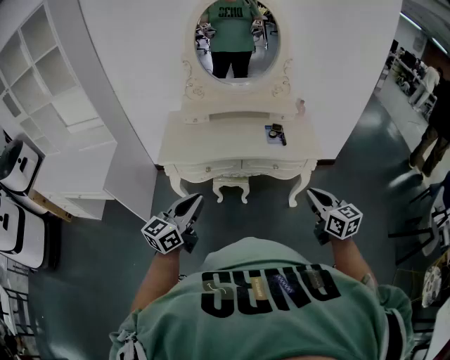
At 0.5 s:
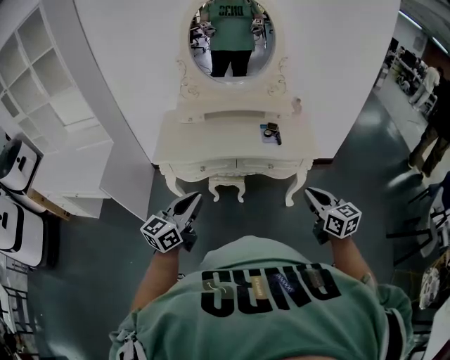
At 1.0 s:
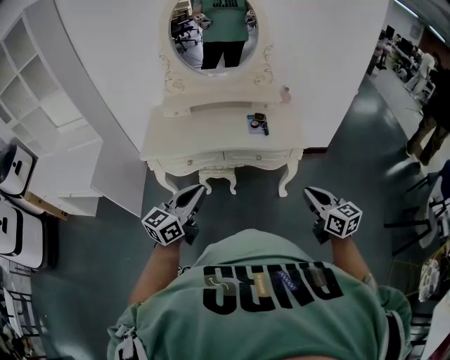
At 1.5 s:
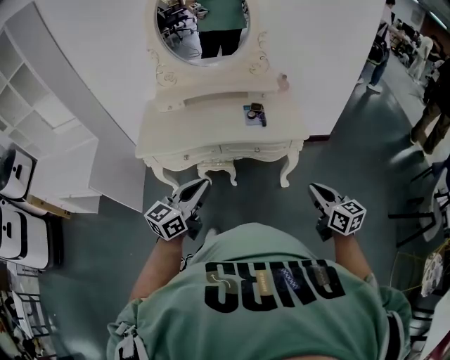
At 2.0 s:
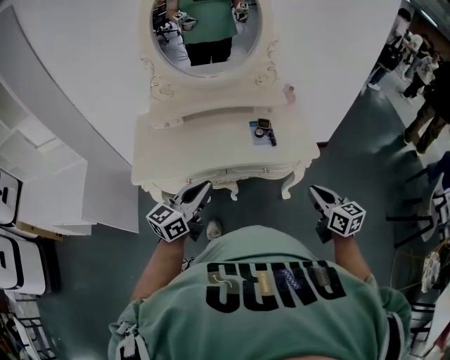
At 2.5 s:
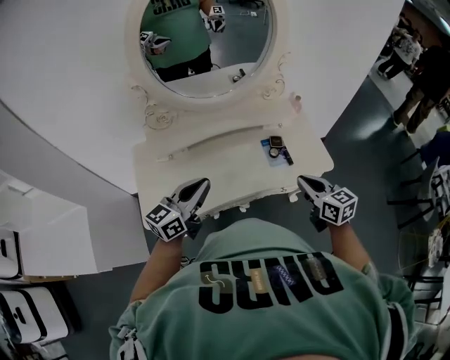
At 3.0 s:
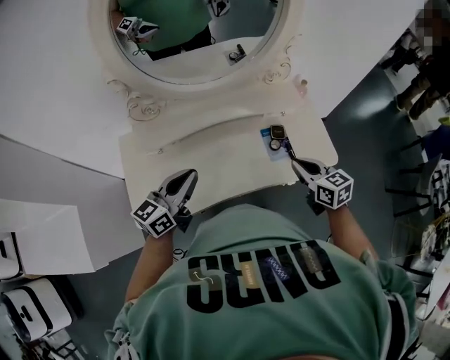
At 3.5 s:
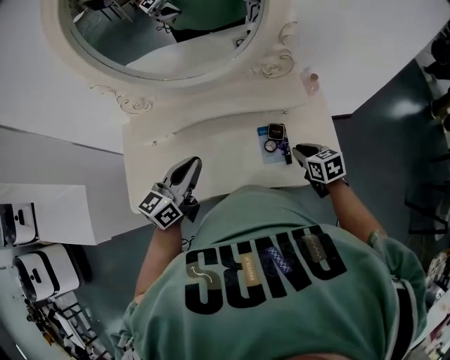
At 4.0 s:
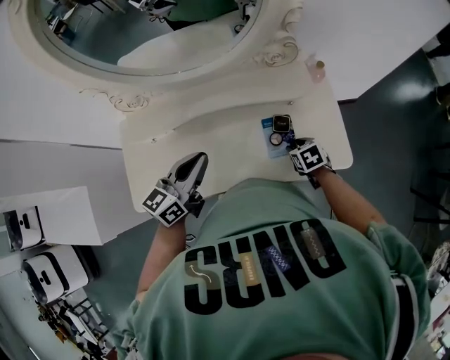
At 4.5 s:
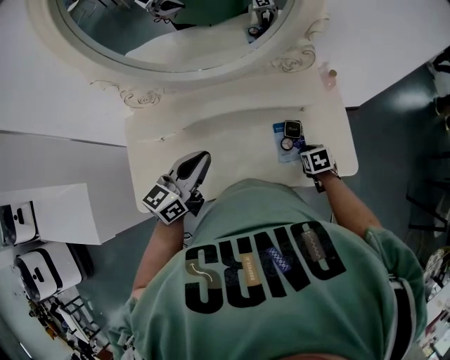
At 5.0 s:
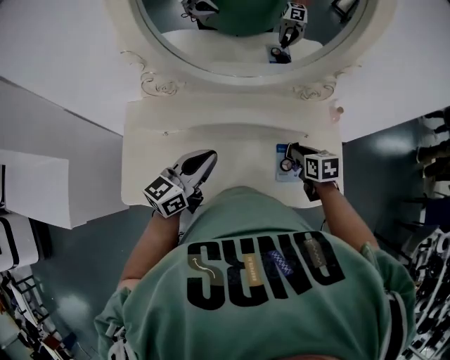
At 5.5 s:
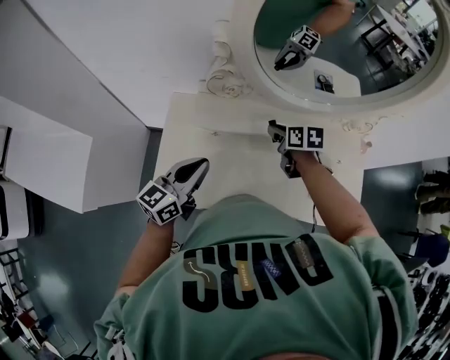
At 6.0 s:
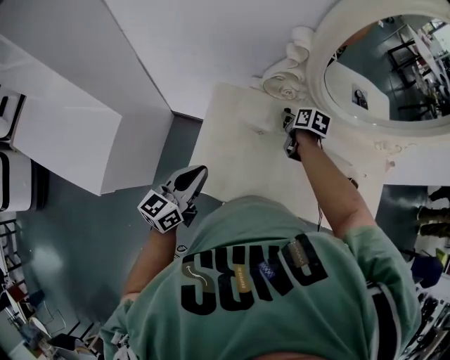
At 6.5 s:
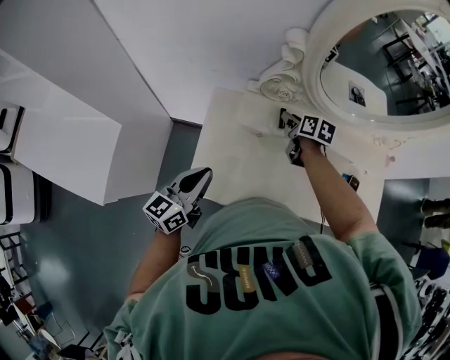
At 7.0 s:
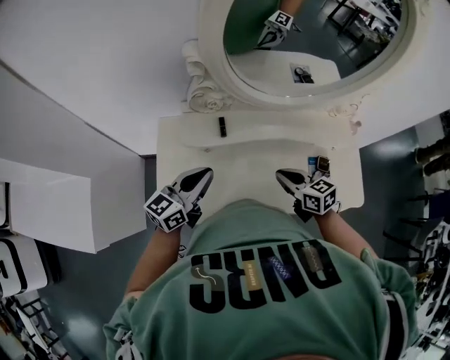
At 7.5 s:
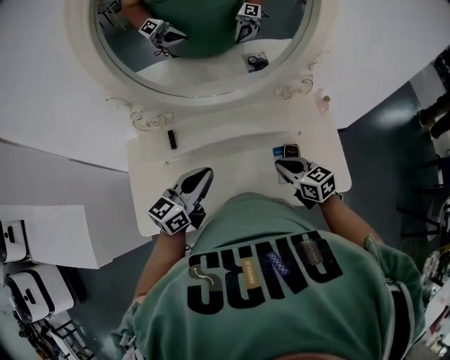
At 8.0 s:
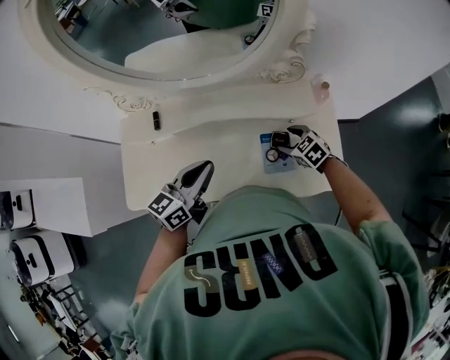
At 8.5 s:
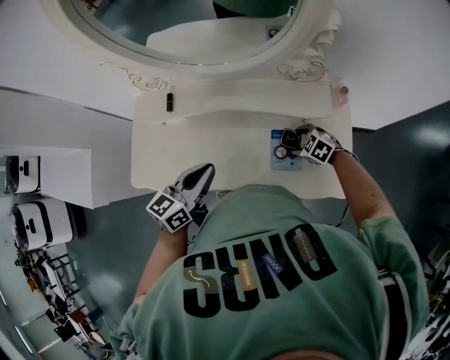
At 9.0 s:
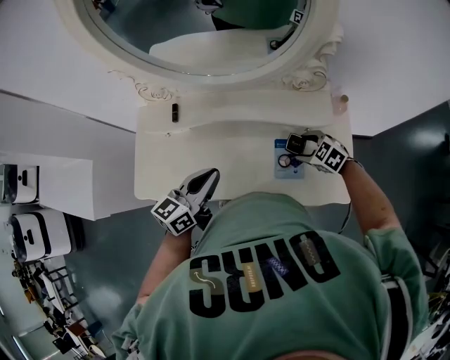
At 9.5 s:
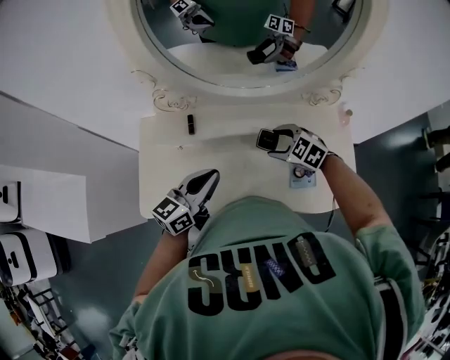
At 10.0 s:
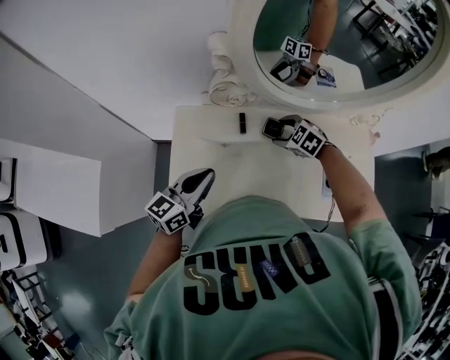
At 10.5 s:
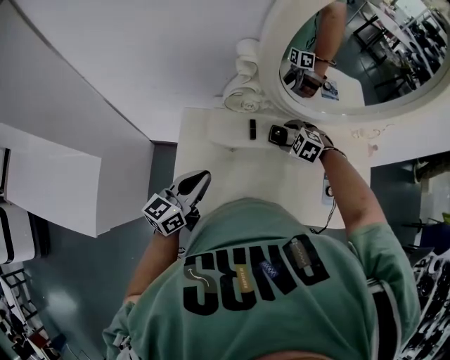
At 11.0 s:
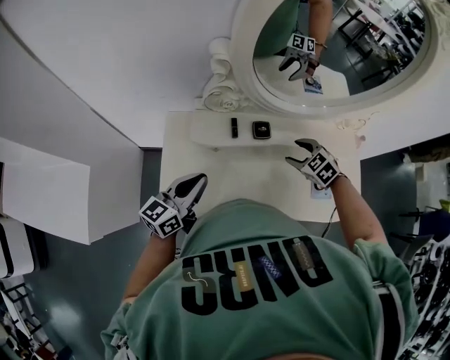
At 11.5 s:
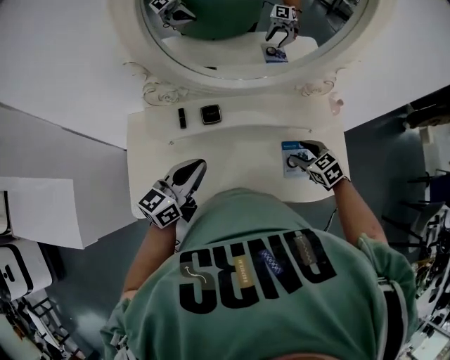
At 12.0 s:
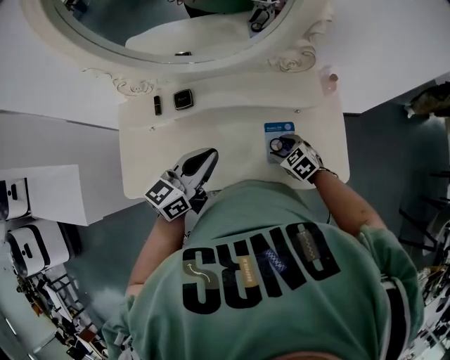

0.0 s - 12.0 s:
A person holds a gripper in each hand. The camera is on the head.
0.0 s - 2.0 s: The right gripper moves forward and downward, some 15 cm. The left gripper heads forward, covering roughly 20 cm.
2.0 s - 4.0 s: The left gripper shifts approximately 35 cm forward. The right gripper travels forward and downward by some 40 cm, angles its fingers downward, by some 40 degrees, and opens up.
4.0 s - 6.0 s: Both grippers are carried to the left, about 40 cm. The left gripper turns by approximately 20 degrees, while the right gripper turns by some 20 degrees.
6.0 s - 8.0 s: Both grippers are carried to the right, approximately 40 cm. The left gripper changes its angle by about 20 degrees, while the right gripper twists roughly 50 degrees counterclockwise, seen from behind, and opens its fingers.
8.0 s - 10.0 s: The right gripper is displaced to the left and forward by approximately 35 cm, and rotates about 20 degrees. Meanwhile the left gripper travels to the left by about 30 cm.
10.0 s - 12.0 s: The right gripper moves to the right and backward, some 35 cm, and turns by approximately 20 degrees, while the left gripper heads to the right, covering roughly 30 cm.

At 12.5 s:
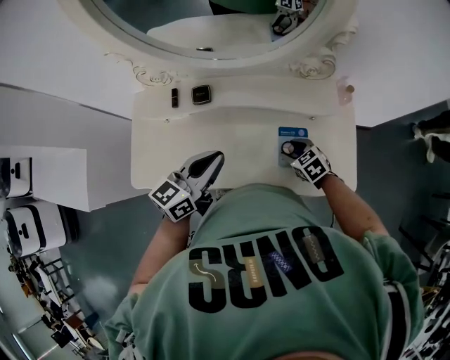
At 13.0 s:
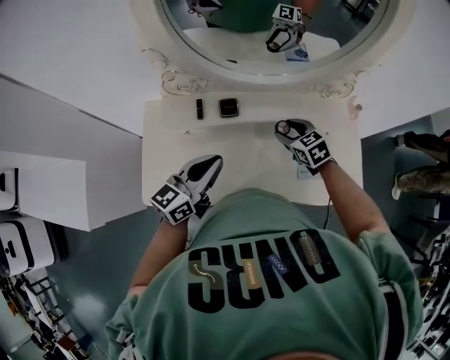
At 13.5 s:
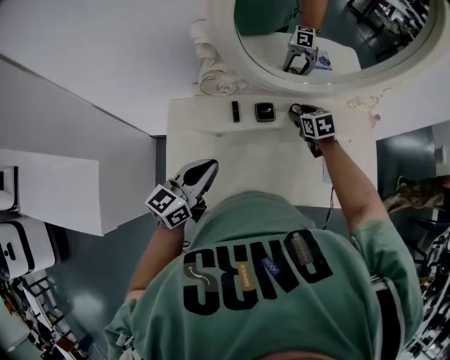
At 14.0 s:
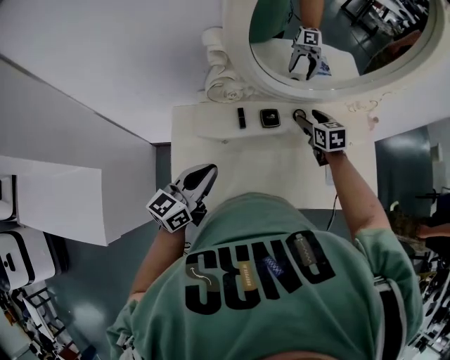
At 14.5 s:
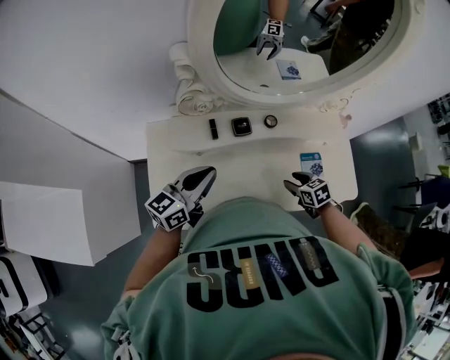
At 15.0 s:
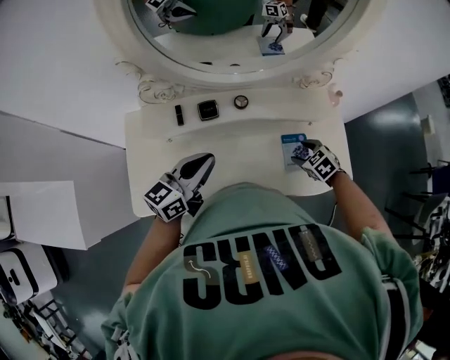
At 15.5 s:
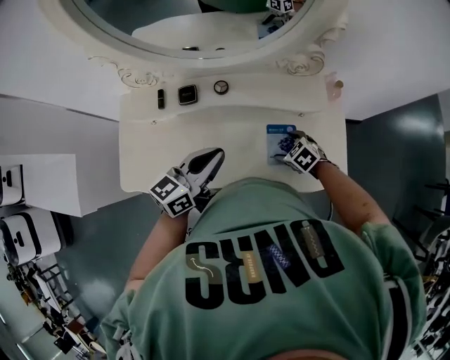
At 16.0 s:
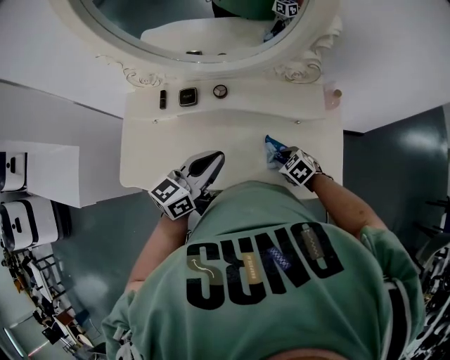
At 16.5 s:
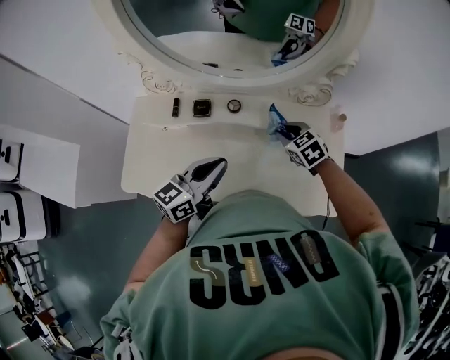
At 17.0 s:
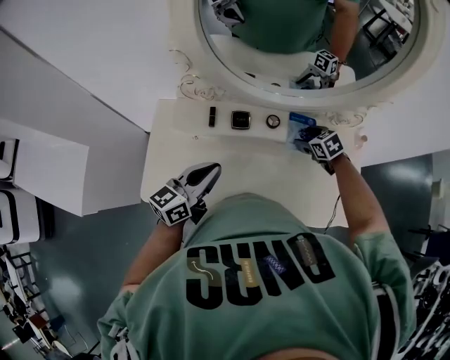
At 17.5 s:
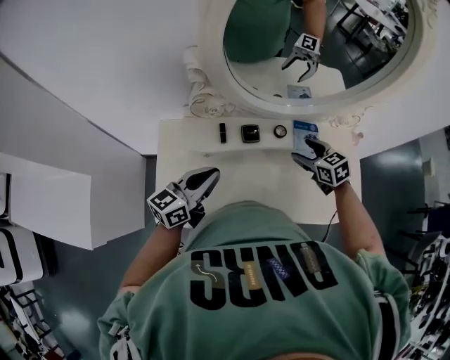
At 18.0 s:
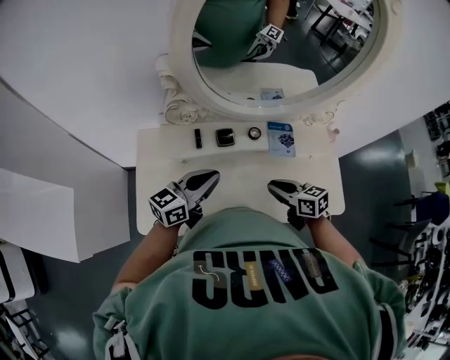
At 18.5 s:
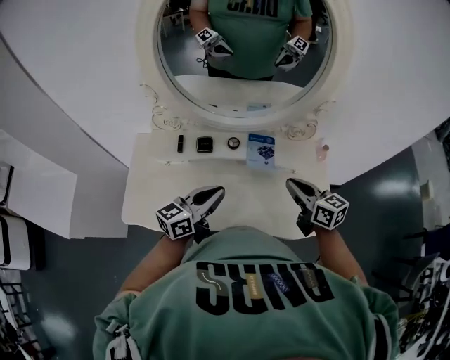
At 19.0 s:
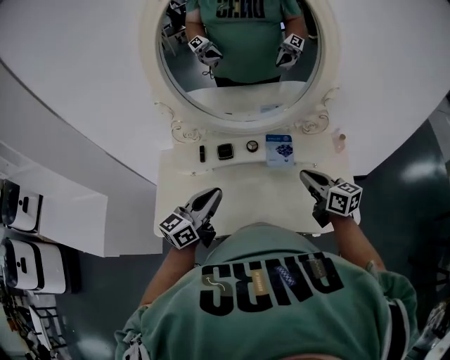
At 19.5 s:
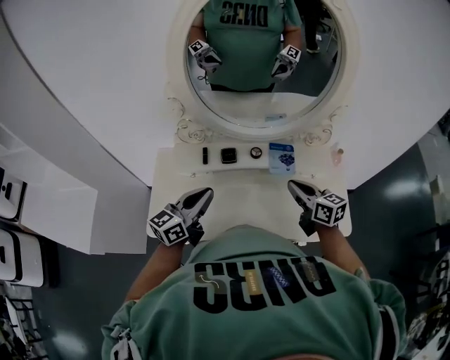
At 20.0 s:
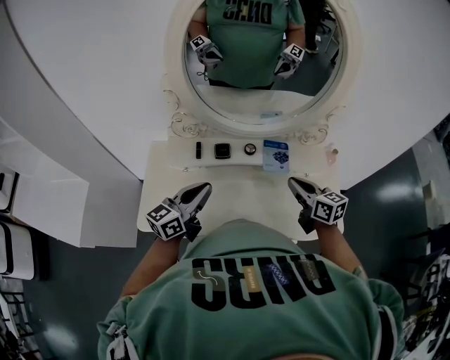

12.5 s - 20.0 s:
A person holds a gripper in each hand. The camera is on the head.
12.5 s - 14.5 s: The left gripper heads to the left, covering about 25 cm. The right gripper is displaced to the left by approximately 15 cm, and changes its angle by roughly 20 degrees.
14.5 s - 16.5 s: The right gripper heads forward, to the right and upward, covering approximately 20 cm, changes its angle by approximately 30 degrees, and opens and closes again; the left gripper shifts approximately 25 cm to the right.
16.5 s - 18.0 s: The left gripper heads to the left, covering about 20 cm. The right gripper is displaced to the left and backward by approximately 20 cm, changes its angle by some 40 degrees, and opens, then closes again.
18.0 s - 20.0 s: The right gripper travels to the right and upward by roughly 15 cm. Meanwhile the left gripper goes approximately 5 cm backward, and reaches about 15 cm to the right, then returns.

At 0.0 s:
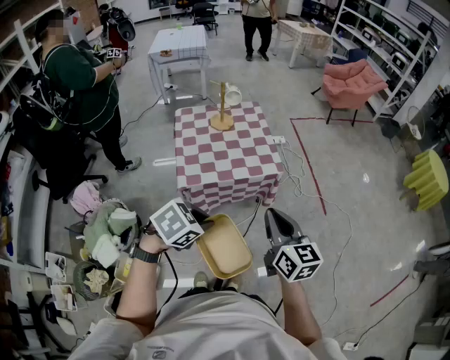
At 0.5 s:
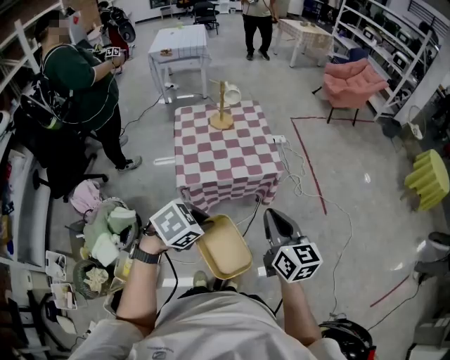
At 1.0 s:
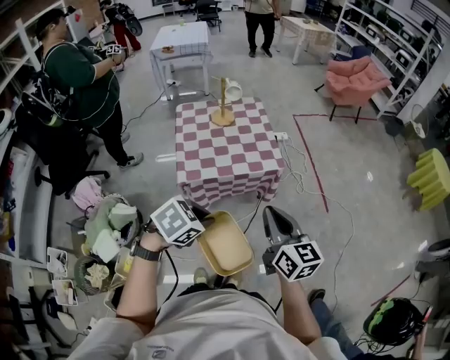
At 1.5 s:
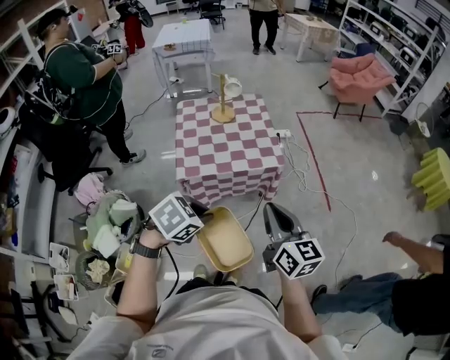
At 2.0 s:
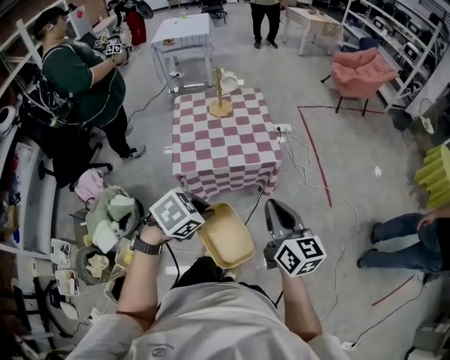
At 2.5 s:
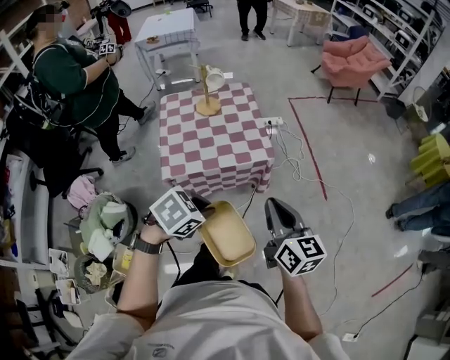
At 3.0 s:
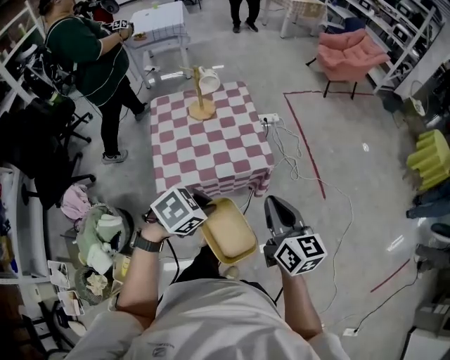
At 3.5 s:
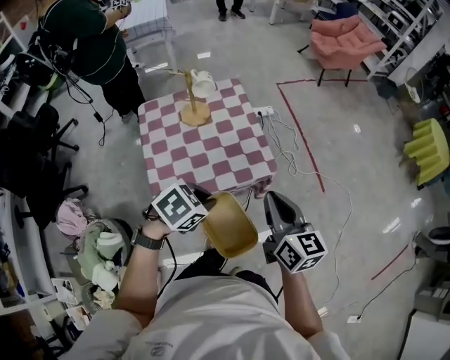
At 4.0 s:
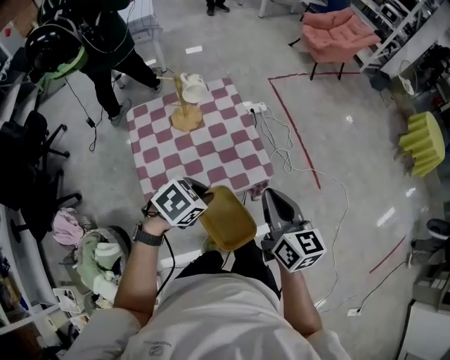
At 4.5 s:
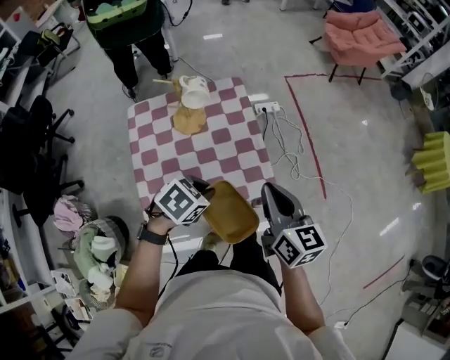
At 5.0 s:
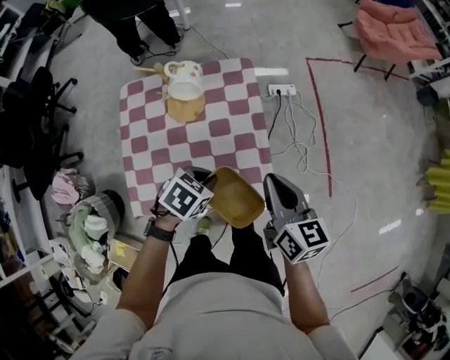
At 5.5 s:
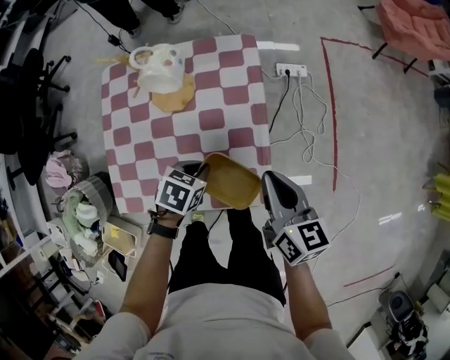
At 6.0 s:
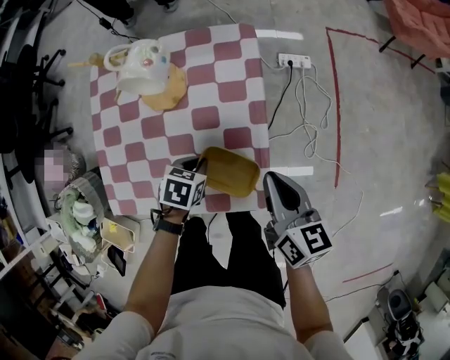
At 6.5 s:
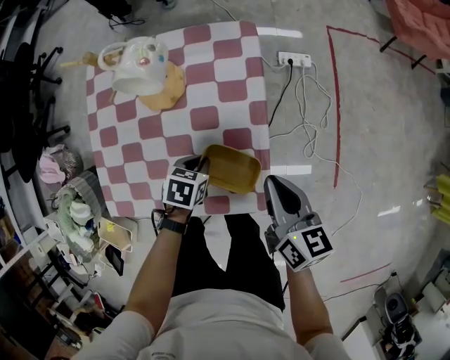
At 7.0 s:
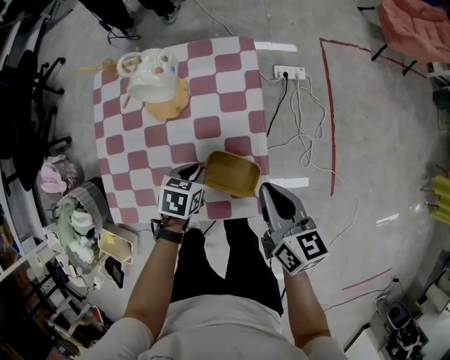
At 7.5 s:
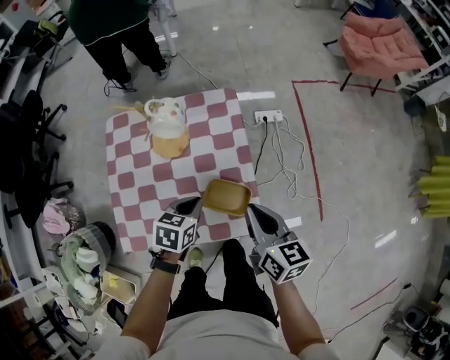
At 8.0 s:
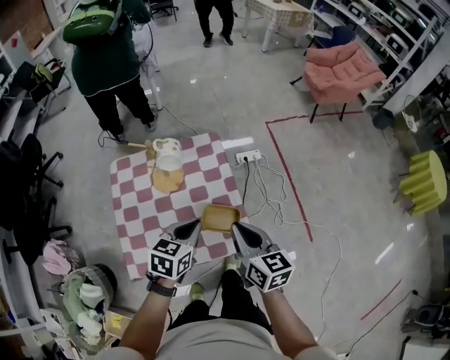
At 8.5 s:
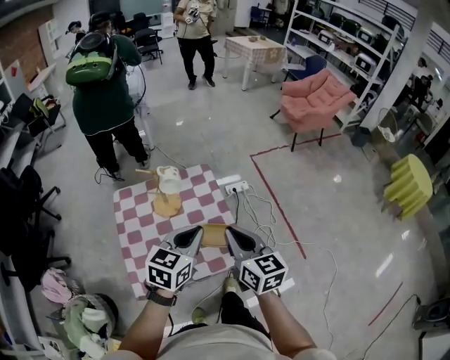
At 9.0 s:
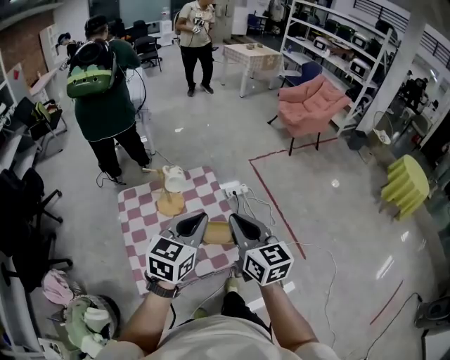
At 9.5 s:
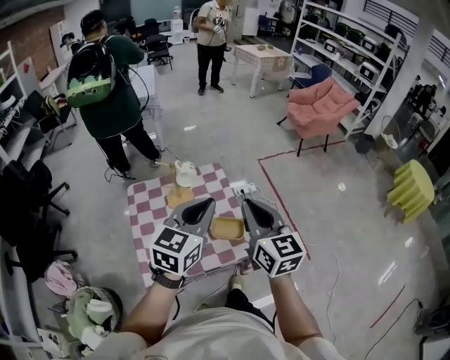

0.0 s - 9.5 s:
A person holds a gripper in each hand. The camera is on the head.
0.0 s - 2.0 s: The grippers both shift to the right by about 5 cm.
2.0 s - 4.0 s: Both grippers move forward and to the left, approximately 30 cm.
4.0 s - 5.5 s: The left gripper shifts roughly 30 cm downward and forward, and rotates some 40 degrees, while the right gripper is displaced forward and downward by approximately 35 cm, and swivels roughly 20 degrees.
5.5 s - 7.5 s: The left gripper moves upward, about 5 cm; the right gripper ends up approximately 5 cm from where it was.
7.5 s - 9.5 s: Both grippers move upward, some 35 cm. The left gripper points its fingers some 40 degrees further upward. Meanwhile the right gripper swivels roughly 30 degrees.
